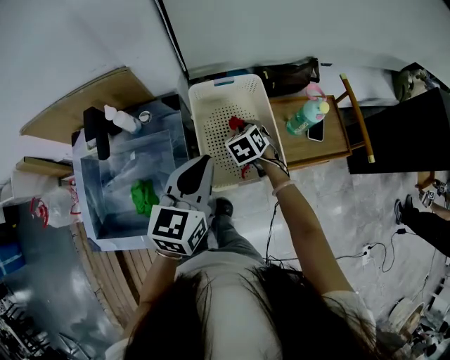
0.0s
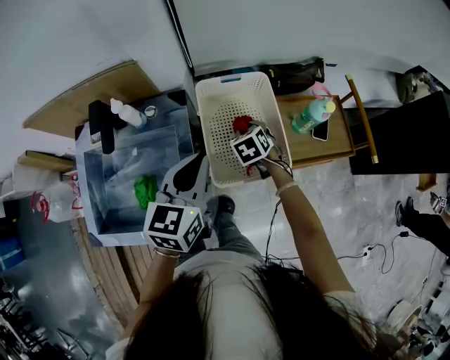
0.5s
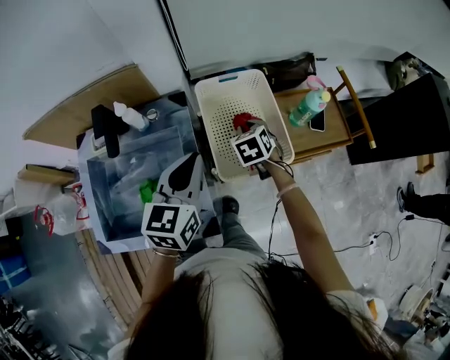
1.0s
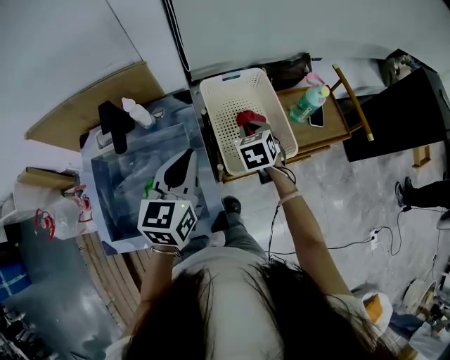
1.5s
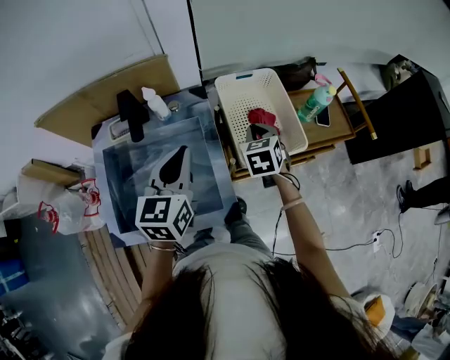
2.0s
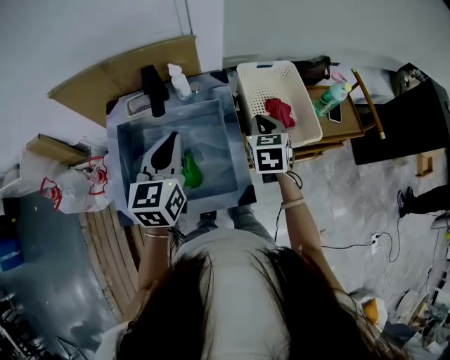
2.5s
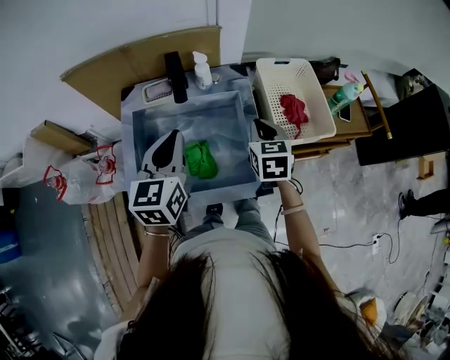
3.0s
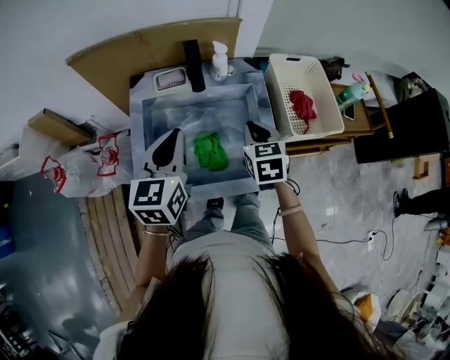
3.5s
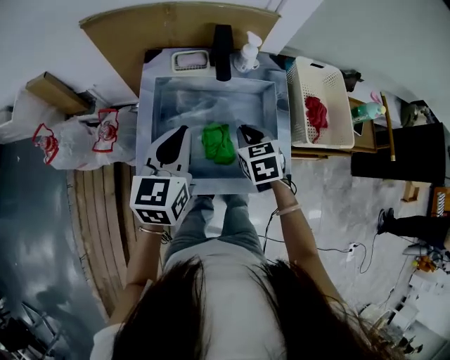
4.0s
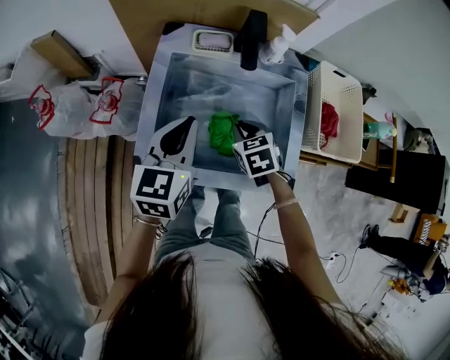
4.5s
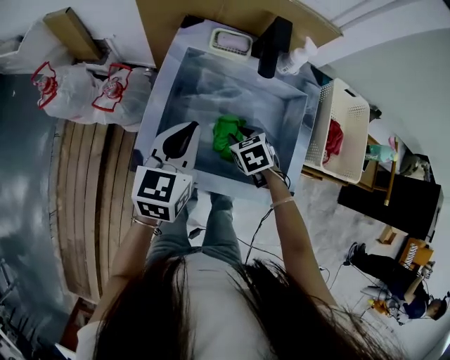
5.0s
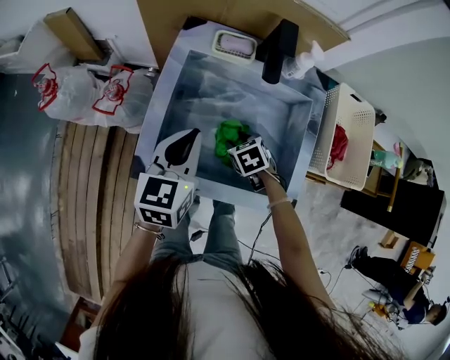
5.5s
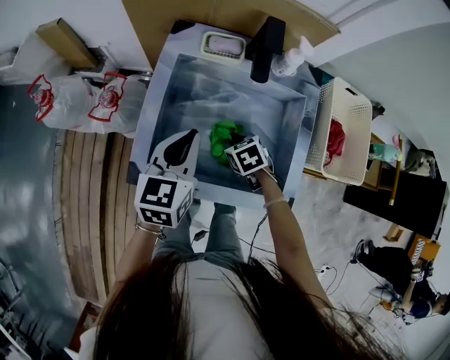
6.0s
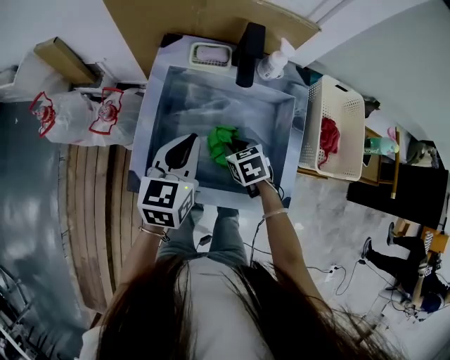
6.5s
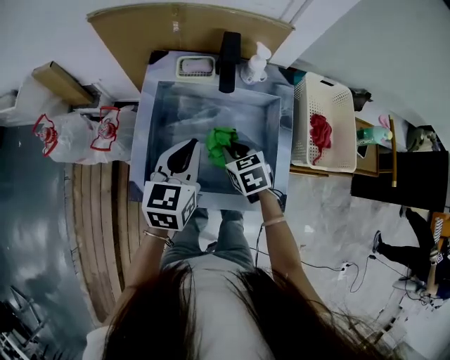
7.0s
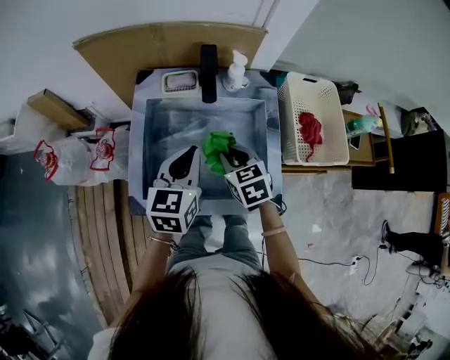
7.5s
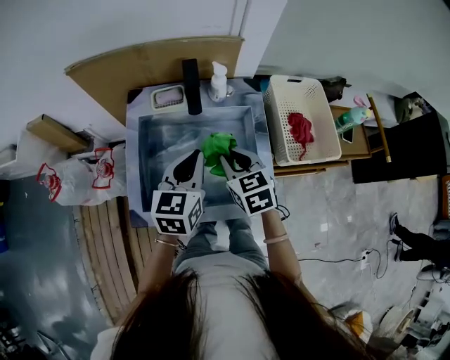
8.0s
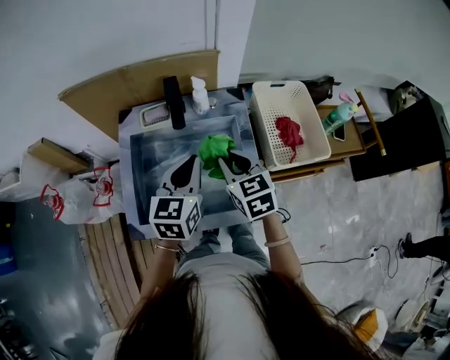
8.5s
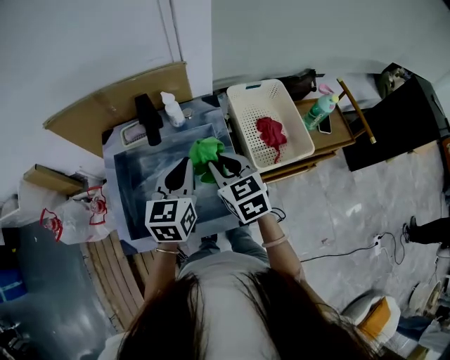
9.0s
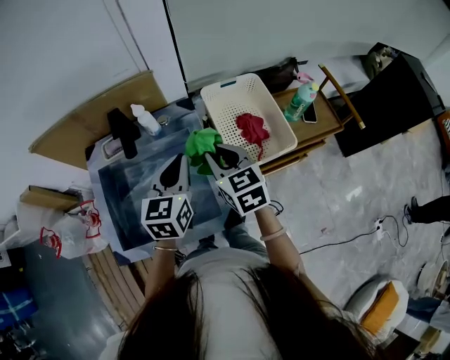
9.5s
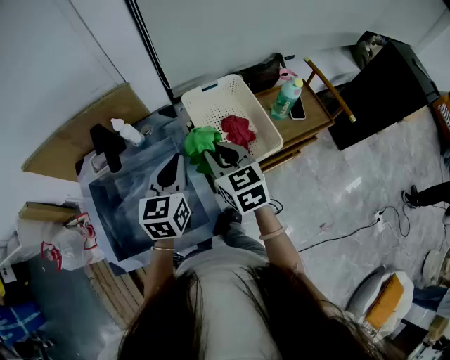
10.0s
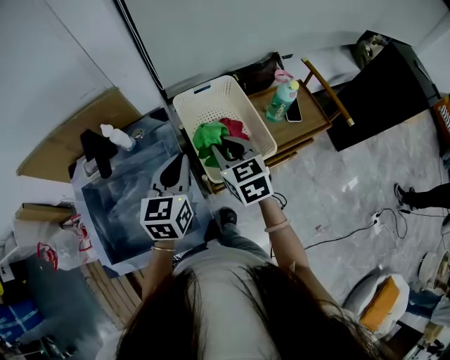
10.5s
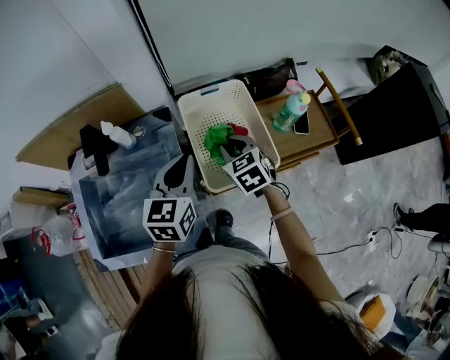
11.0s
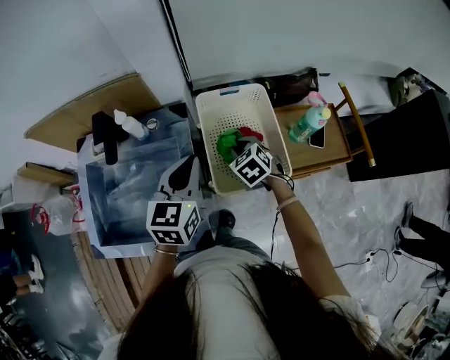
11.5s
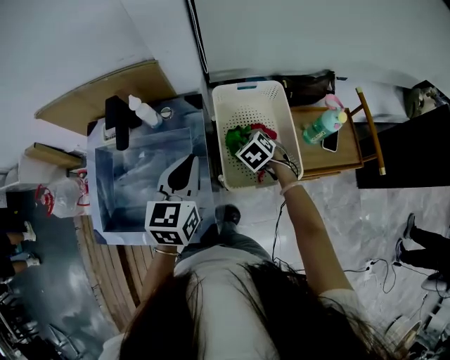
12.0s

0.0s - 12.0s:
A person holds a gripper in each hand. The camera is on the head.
0.0s - 2.0s: The left gripper travels to the left and backward by approximately 15 cm; the right gripper moves upward, backward and to the left, about 15 cm.
2.0s - 4.0s: The grippers both shift to the left by about 25 cm.
4.0s - 6.0s: The left gripper moves downward, roughly 10 cm, while the right gripper is displaced downward by roughly 15 cm, turns by about 30 degrees, and opens, then closes again.
6.0s - 8.0s: The right gripper heads upward, covering roughly 20 cm, and changes its angle by some 40 degrees; the left gripper is displaced to the right and upward by roughly 15 cm.
8.0s - 10.0s: Both grippers move to the right, some 20 cm.
10.0s - 12.0s: The right gripper travels downward and forward by roughly 25 cm, and tips its fingers downward by about 40 degrees.

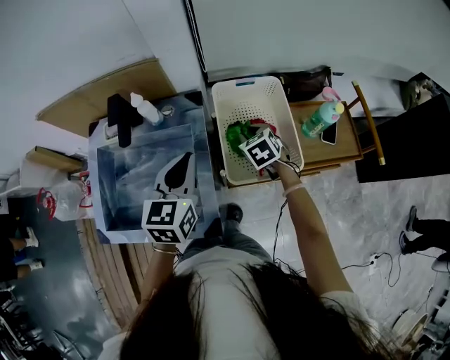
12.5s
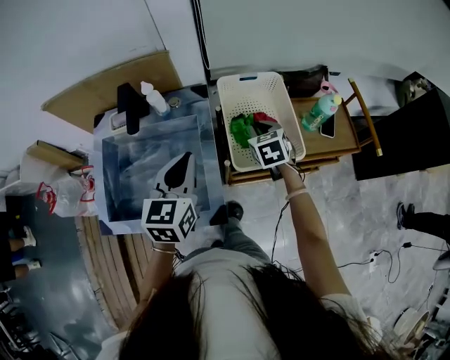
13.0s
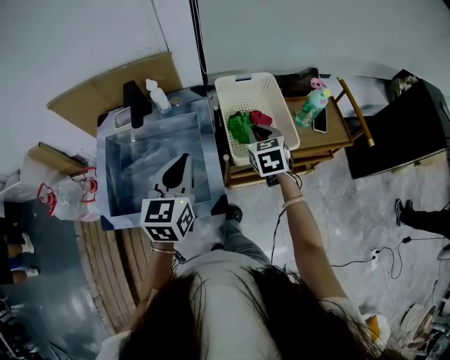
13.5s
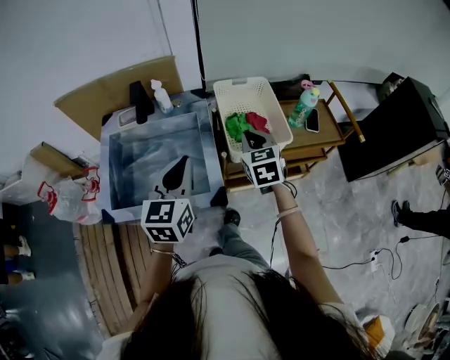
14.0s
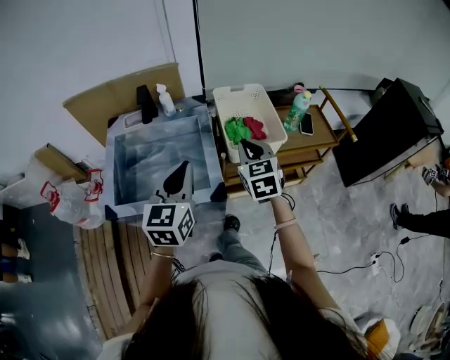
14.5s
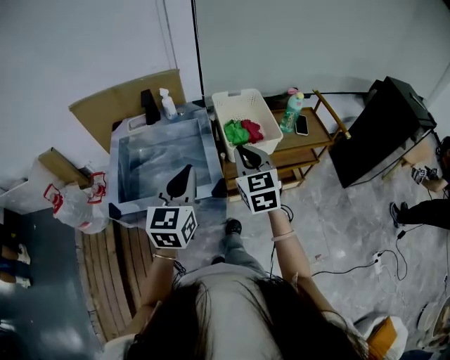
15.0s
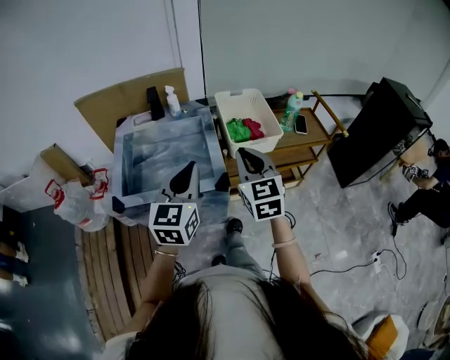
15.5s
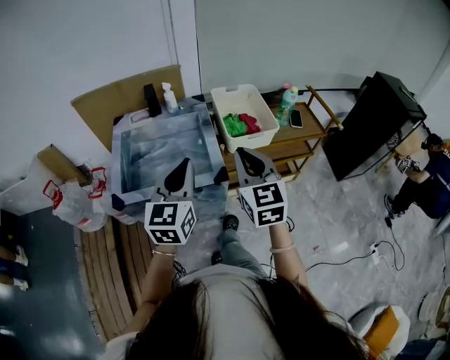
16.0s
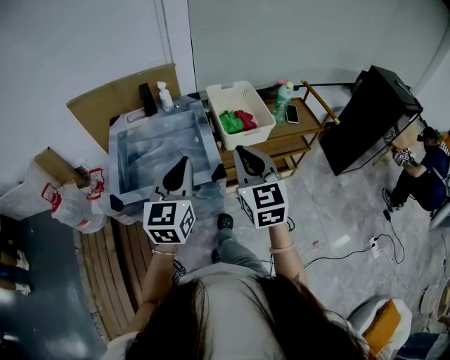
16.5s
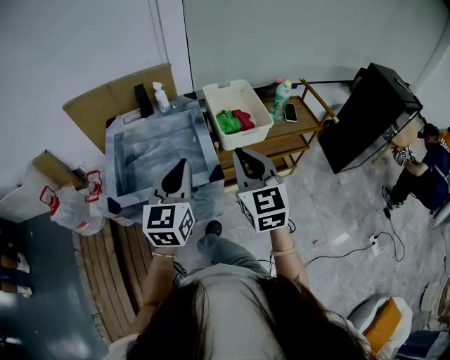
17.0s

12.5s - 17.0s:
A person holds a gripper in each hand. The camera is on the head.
12.5s - 14.5s: The left gripper heads backward, covering some 20 cm; the right gripper is displaced backward and upward by roughly 30 cm, rotates roughly 30 degrees, and closes up.
14.5s - 17.0s: The left gripper moves backward, approximately 10 cm; the right gripper travels backward and upward by approximately 20 cm.

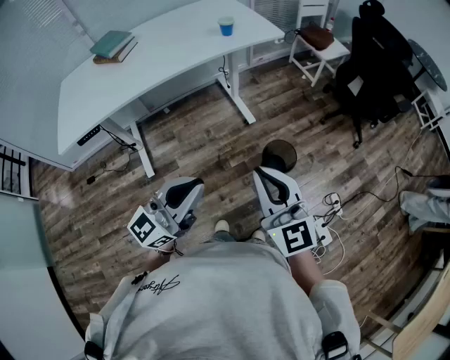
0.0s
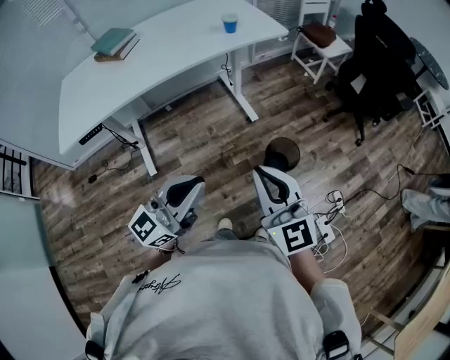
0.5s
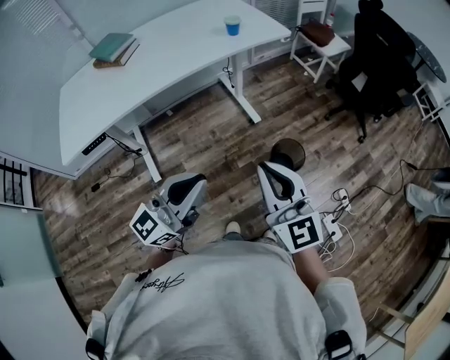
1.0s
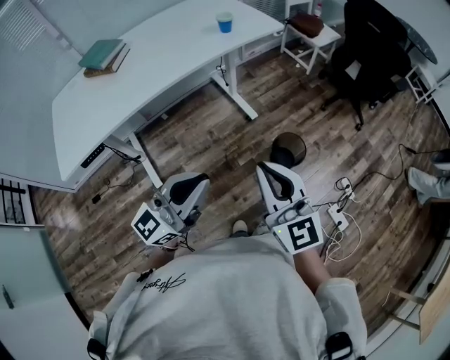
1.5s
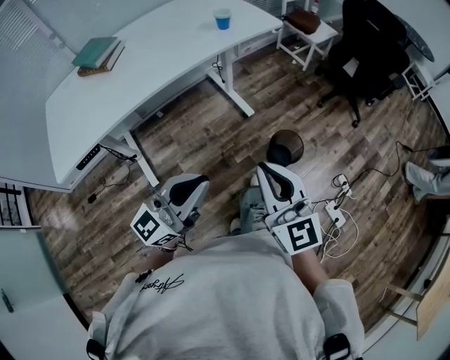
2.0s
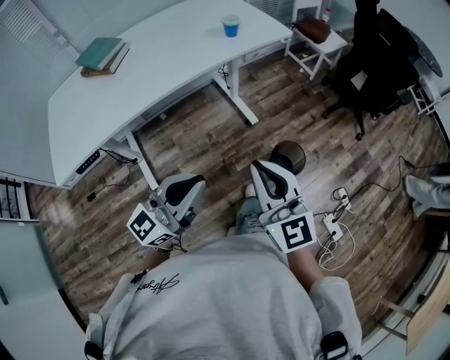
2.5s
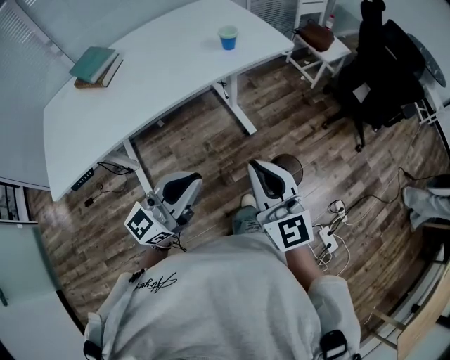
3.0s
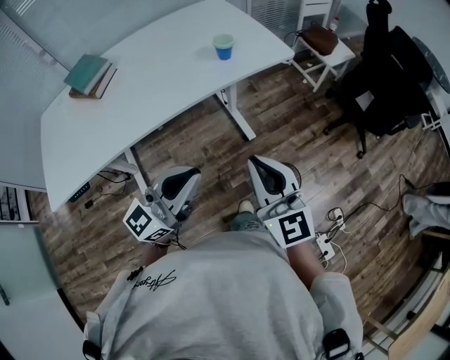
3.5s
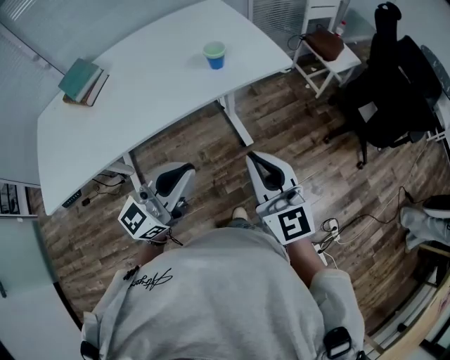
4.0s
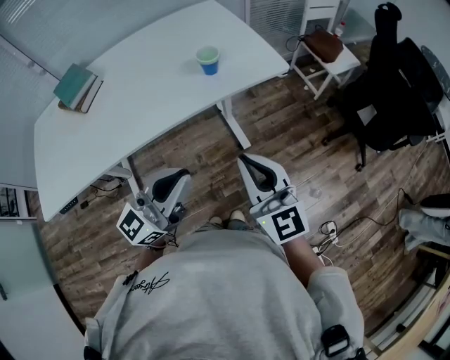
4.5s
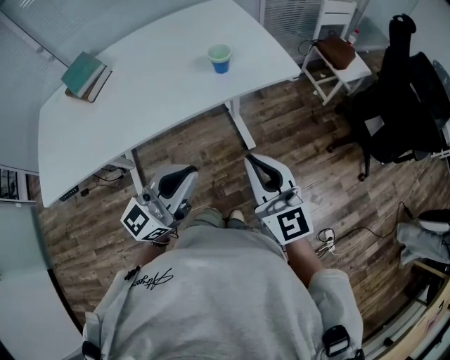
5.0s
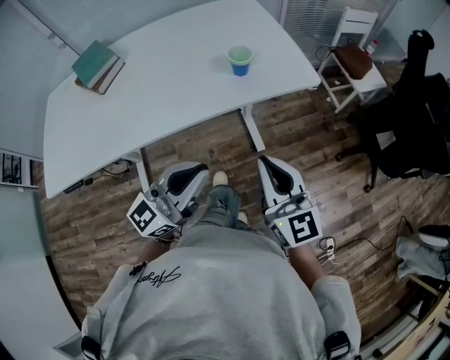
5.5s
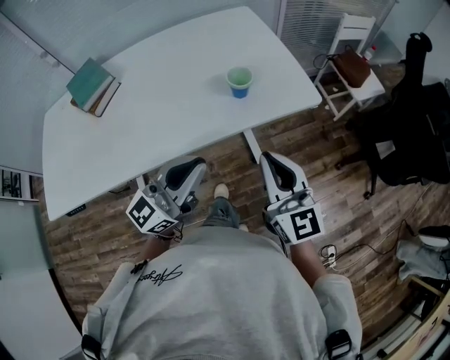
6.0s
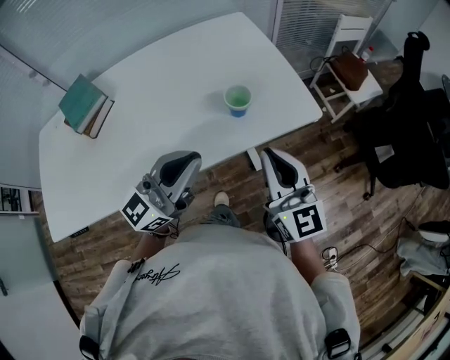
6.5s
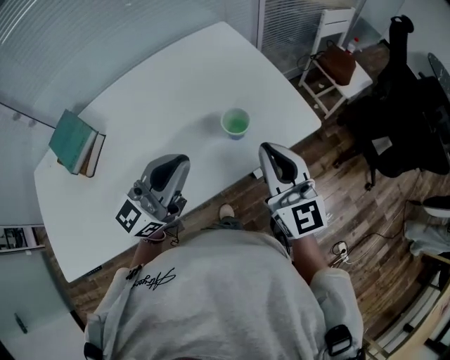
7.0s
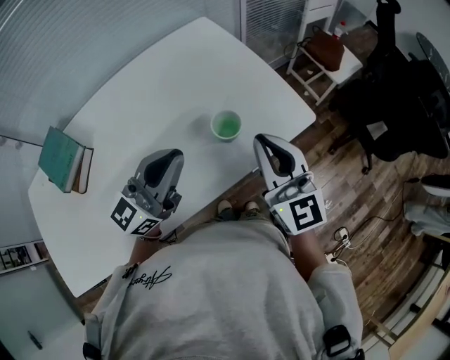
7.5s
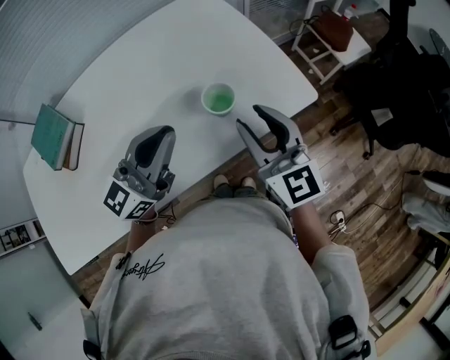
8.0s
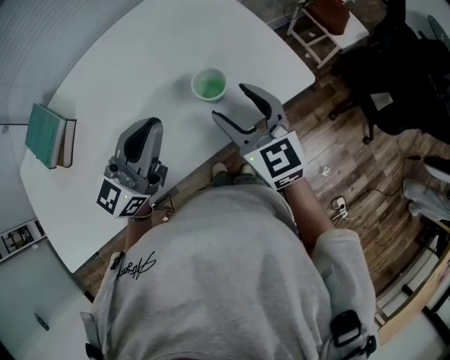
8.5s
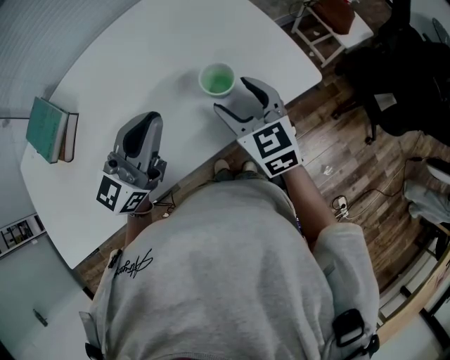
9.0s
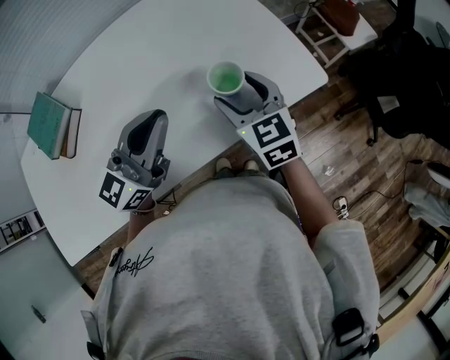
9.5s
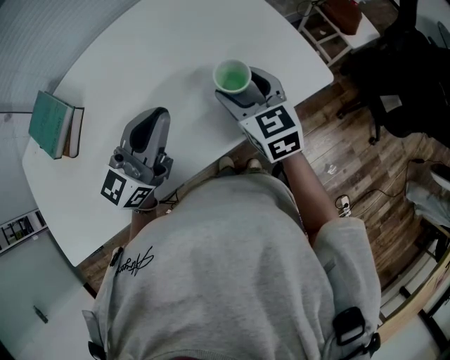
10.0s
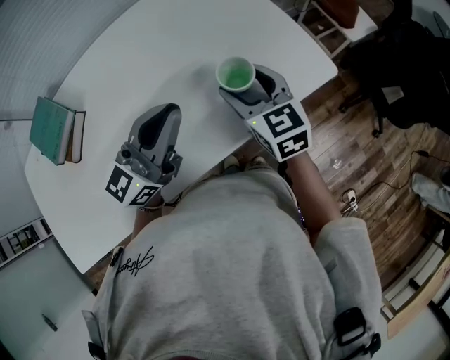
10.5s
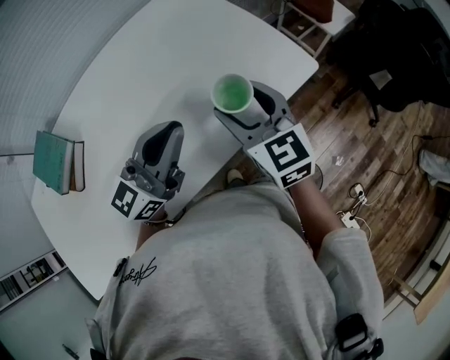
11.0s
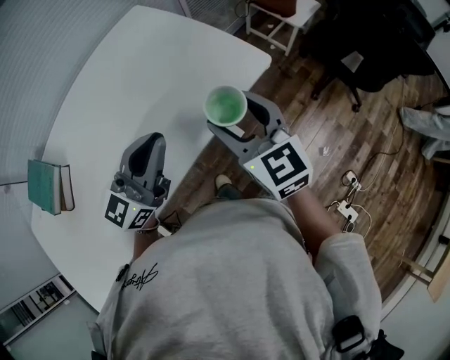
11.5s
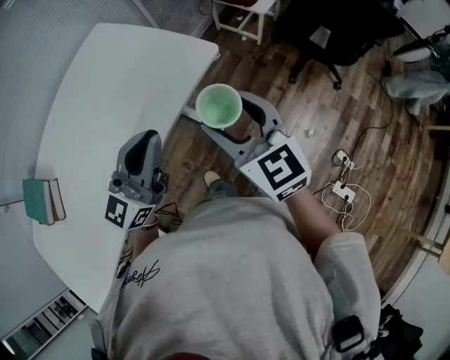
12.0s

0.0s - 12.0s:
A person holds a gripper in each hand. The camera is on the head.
0.0s - 2.0s: The two grippers go about 10 cm to the left.
2.0s - 4.0s: The grippers both shift forward by roughly 30 cm.
4.0s - 6.0s: The two grippers go some 15 cm forward.
6.0s - 8.0s: Both grippers move forward, about 15 cm. The right gripper opens up.
8.0s - 10.0s: The right gripper is displaced downward, to the left and forward by some 10 cm, and opens up.
10.0s - 12.0s: The left gripper moves to the right, approximately 20 cm, and swivels about 20 degrees, while the right gripper is displaced to the right and backward by roughly 25 cm, and swivels some 20 degrees.
